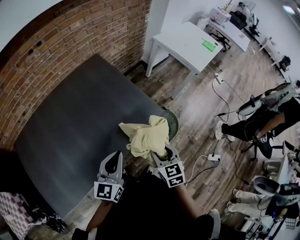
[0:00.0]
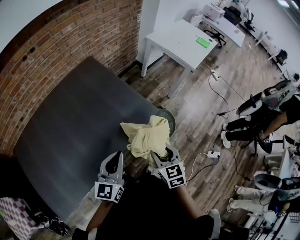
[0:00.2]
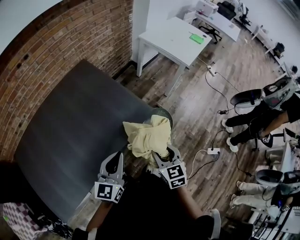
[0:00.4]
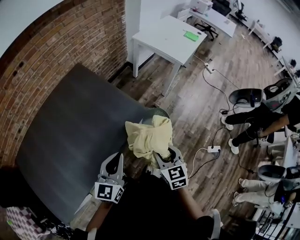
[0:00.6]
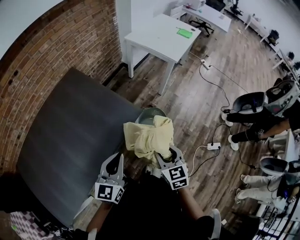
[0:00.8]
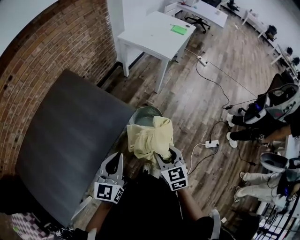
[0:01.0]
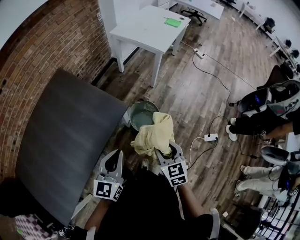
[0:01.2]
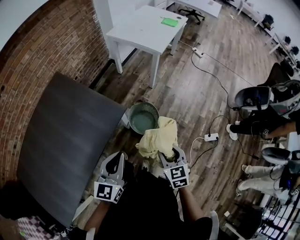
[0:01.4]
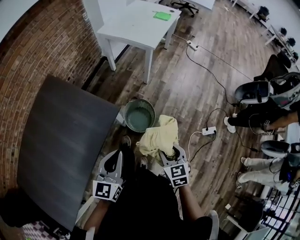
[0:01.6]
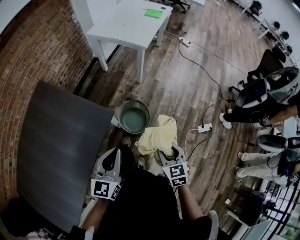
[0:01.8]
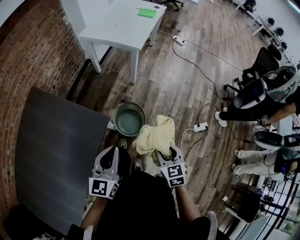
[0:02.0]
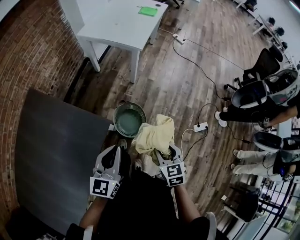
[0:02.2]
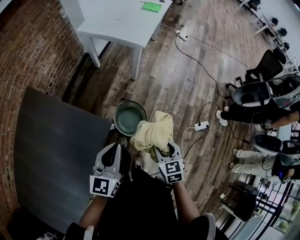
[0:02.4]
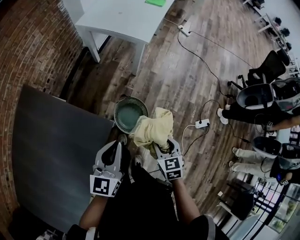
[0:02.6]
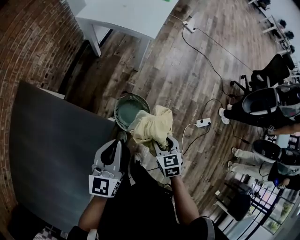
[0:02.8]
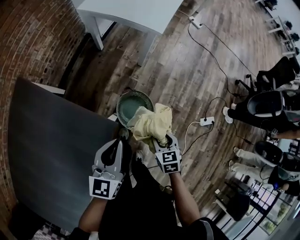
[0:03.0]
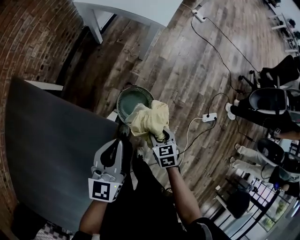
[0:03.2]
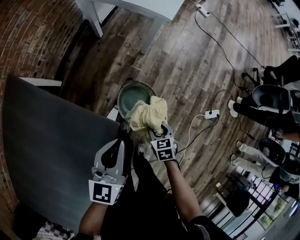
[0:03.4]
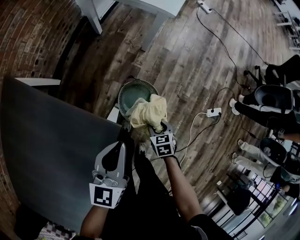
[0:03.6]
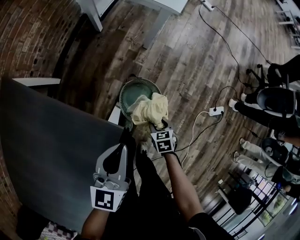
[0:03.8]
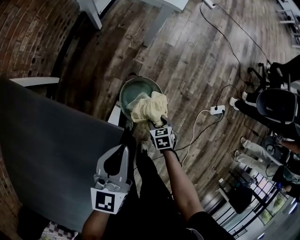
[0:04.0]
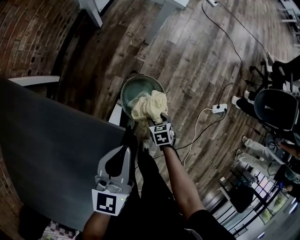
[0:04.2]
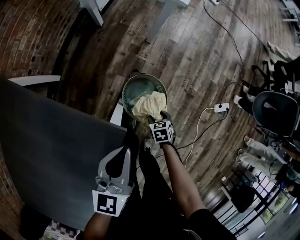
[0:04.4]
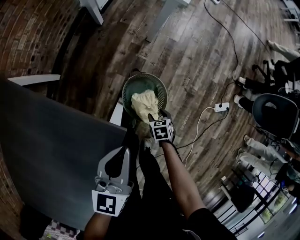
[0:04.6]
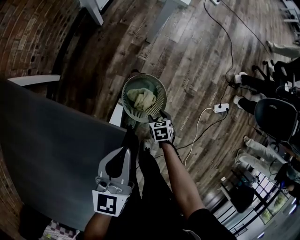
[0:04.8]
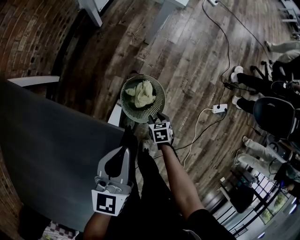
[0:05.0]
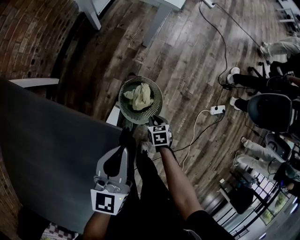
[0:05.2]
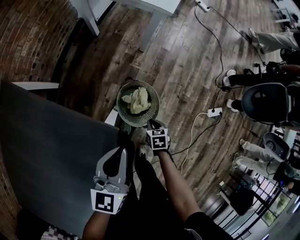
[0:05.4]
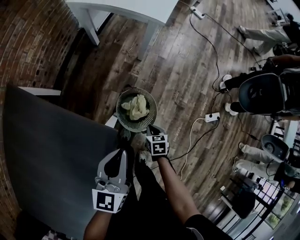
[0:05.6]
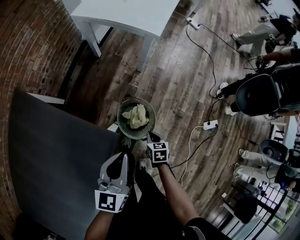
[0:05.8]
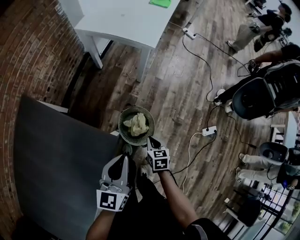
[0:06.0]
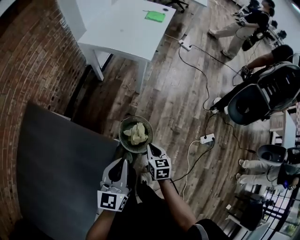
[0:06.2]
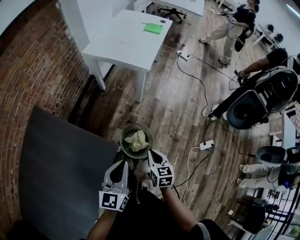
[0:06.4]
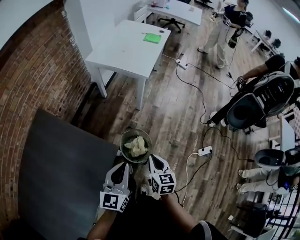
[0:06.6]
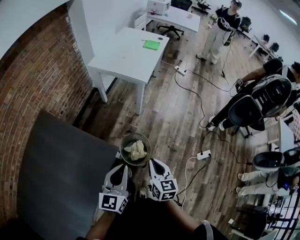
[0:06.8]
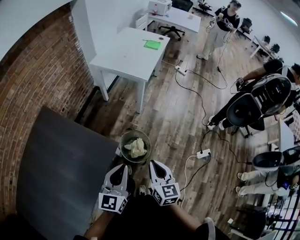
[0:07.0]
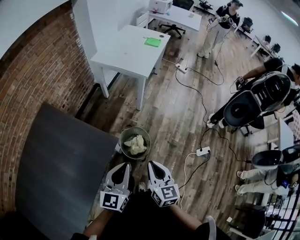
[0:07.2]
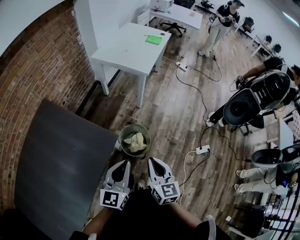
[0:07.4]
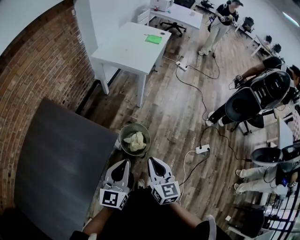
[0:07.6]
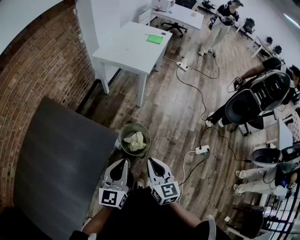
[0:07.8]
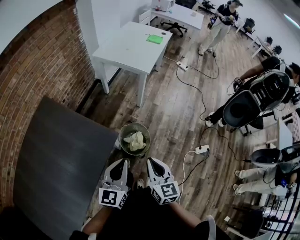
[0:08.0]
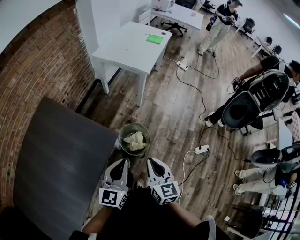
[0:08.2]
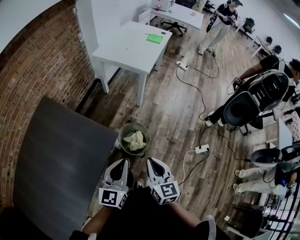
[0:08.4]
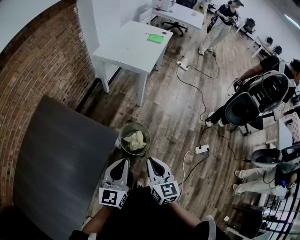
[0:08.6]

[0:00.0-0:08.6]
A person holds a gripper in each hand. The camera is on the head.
0:00.0 to 0:01.4: The two grippers go about 25 cm to the right.
0:01.4 to 0:02.8: The left gripper moves forward, approximately 25 cm. Meanwhile the right gripper travels forward and downward by roughly 20 cm.
0:02.8 to 0:04.4: The left gripper shifts approximately 10 cm downward. Meanwhile the right gripper heads downward, covering approximately 30 cm, and turns by roughly 20 degrees.
0:04.4 to 0:05.8: The left gripper goes roughly 5 cm upward. Meanwhile the right gripper shifts roughly 15 cm upward, and closes.
0:05.8 to 0:07.2: The right gripper moves upward and backward, some 40 cm, and angles its fingers upward, by roughly 40 degrees; the left gripper is displaced backward and upward by about 20 cm.
0:07.2 to 0:08.6: The grippers stay close to where they were, moving slightly.

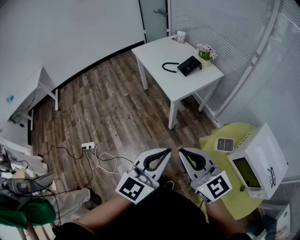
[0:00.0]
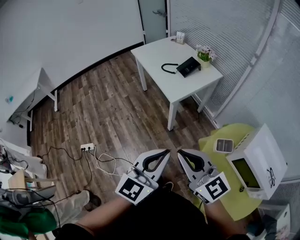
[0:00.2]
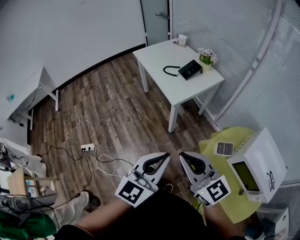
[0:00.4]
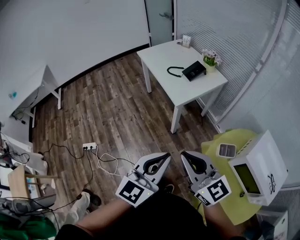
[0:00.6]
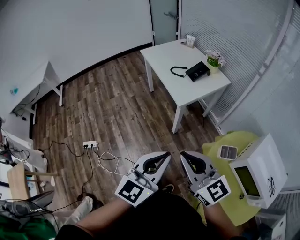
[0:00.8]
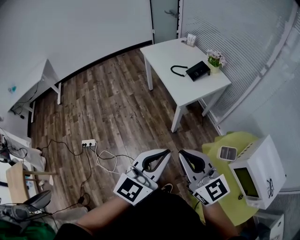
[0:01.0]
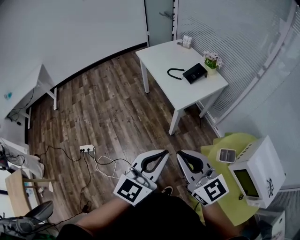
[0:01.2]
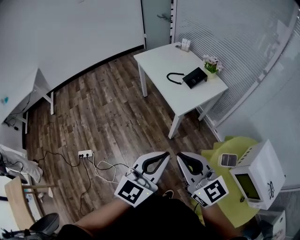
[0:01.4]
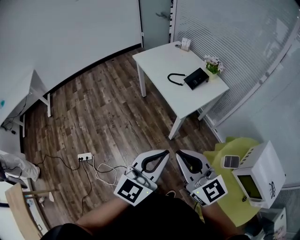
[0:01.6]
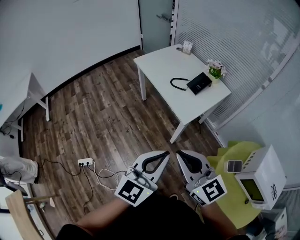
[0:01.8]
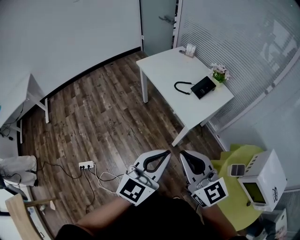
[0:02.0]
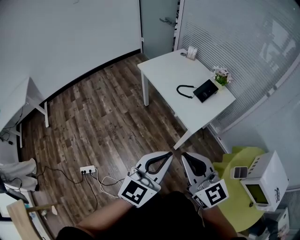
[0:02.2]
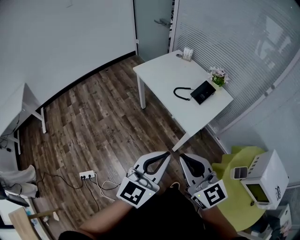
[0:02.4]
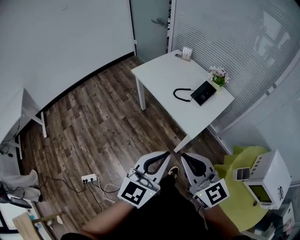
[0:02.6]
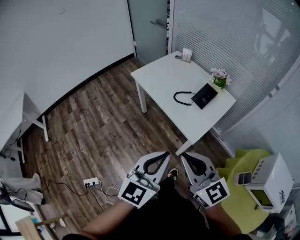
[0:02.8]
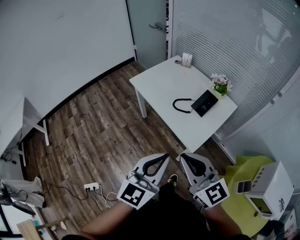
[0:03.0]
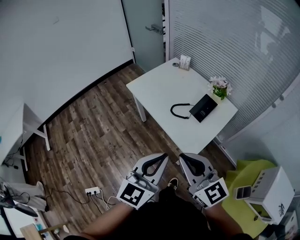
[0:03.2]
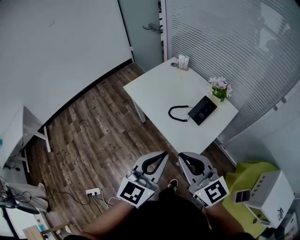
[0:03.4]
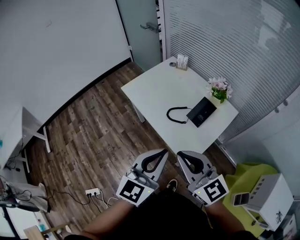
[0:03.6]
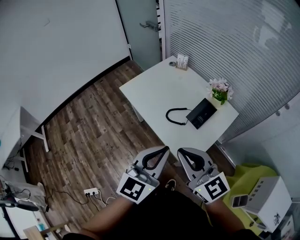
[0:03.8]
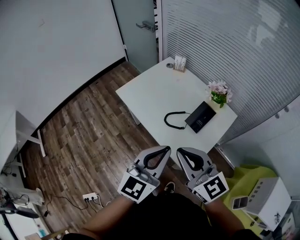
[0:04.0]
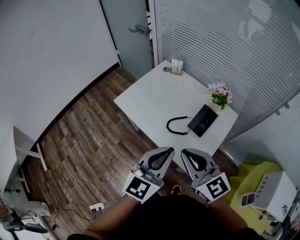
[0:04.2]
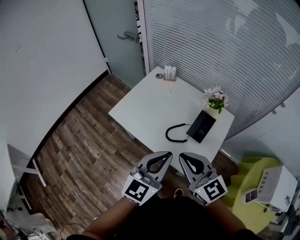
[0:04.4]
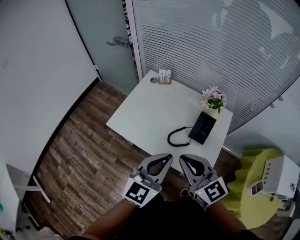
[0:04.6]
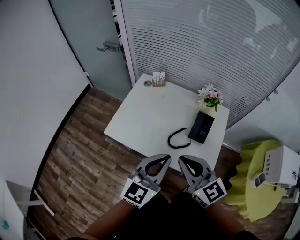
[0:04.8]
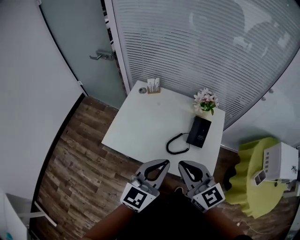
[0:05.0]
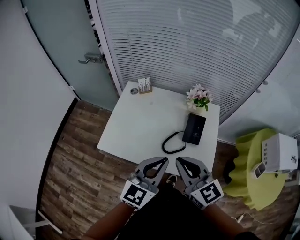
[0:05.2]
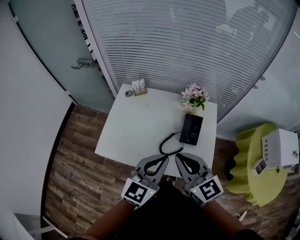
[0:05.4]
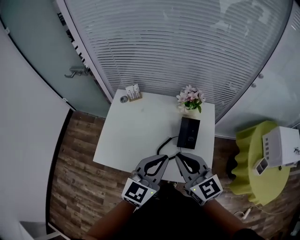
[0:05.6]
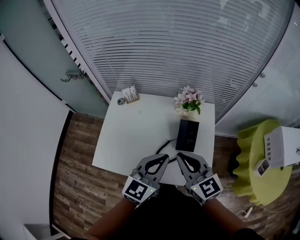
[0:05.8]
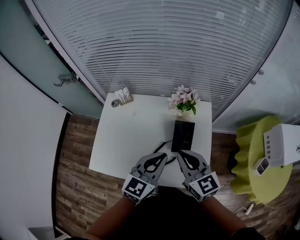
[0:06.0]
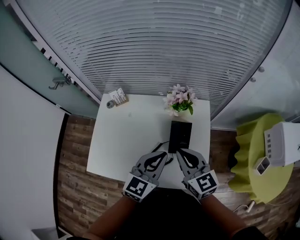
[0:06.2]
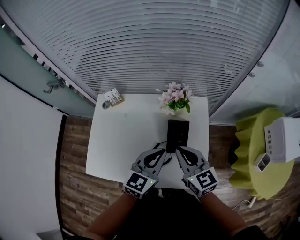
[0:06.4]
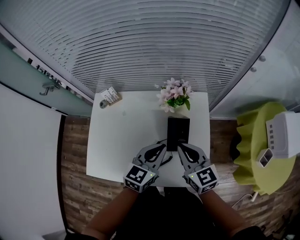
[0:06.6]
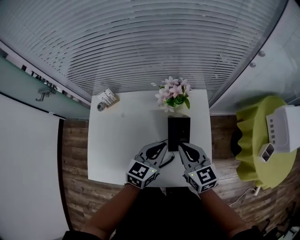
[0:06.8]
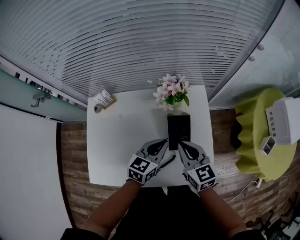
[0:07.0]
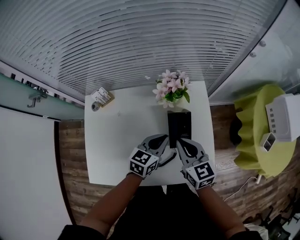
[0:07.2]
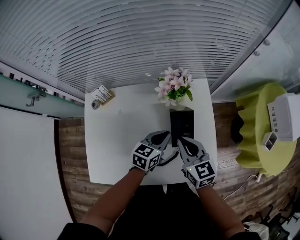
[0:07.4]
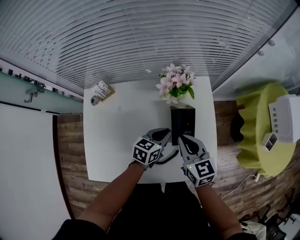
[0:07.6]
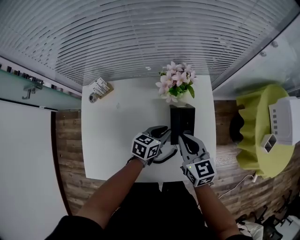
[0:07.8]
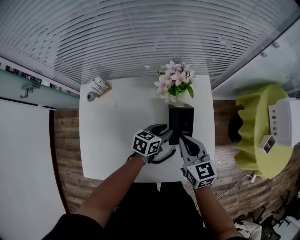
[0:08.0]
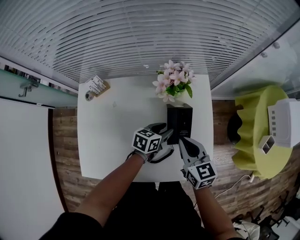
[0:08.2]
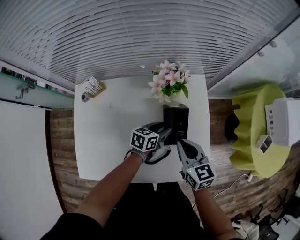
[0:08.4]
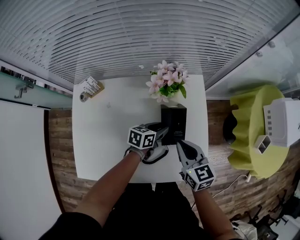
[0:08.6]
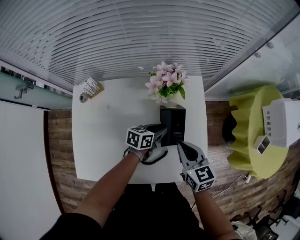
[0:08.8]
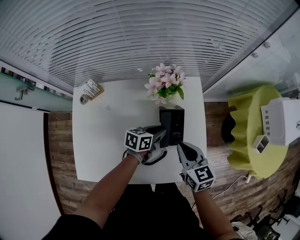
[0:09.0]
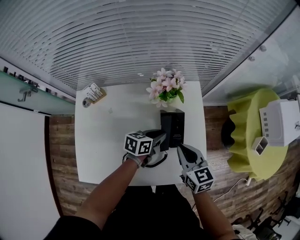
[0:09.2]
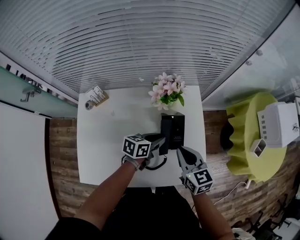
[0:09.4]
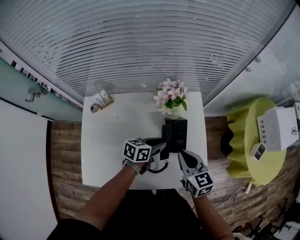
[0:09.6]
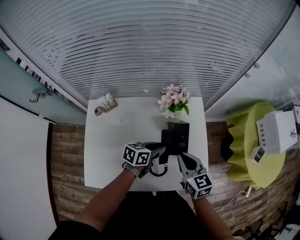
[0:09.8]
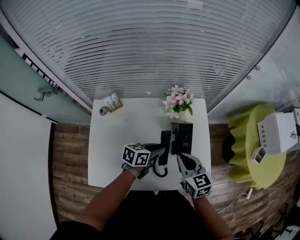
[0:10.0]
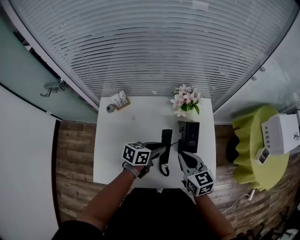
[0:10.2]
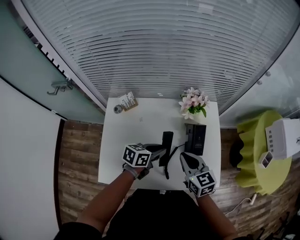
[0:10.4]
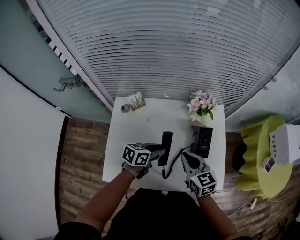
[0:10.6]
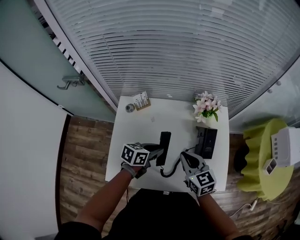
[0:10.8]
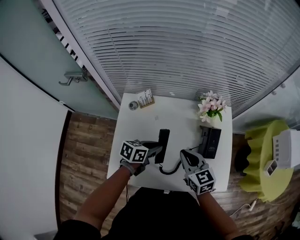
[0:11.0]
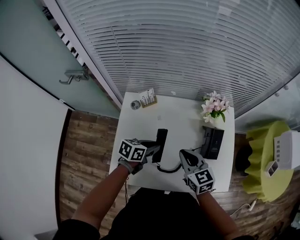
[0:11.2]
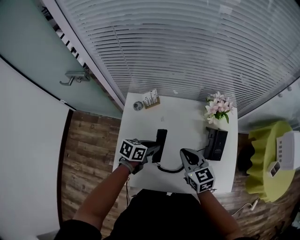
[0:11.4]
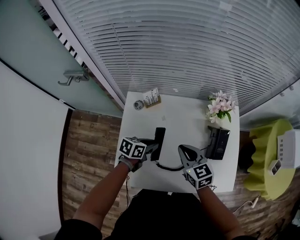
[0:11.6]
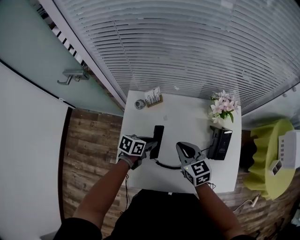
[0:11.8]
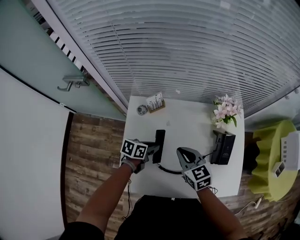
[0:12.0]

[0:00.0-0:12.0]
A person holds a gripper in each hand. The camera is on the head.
0:00.0 to 0:01.6: Both grippers travel together forward and to the left, approximately 15 cm.
0:01.6 to 0:03.0: The two grippers go approximately 25 cm forward.
0:03.0 to 0:04.4: Both grippers travel together forward, approximately 25 cm.
0:04.4 to 0:06.0: The left gripper shifts by some 20 cm, and changes its angle by approximately 30 degrees. Meanwhile the right gripper moves approximately 20 cm, and rotates some 40 degrees.
0:06.0 to 0:07.6: The right gripper goes some 15 cm downward and forward, and turns by approximately 20 degrees; the left gripper travels downward and forward by some 25 cm, and turns by some 30 degrees.
0:07.6 to 0:09.0: The left gripper moves roughly 5 cm. Meanwhile the right gripper moves to the right, some 5 cm.
0:09.0 to 0:10.4: The right gripper moves to the left, backward and upward, roughly 15 cm, while the left gripper travels to the left, upward and backward by about 20 cm.
0:10.4 to 0:12.0: The left gripper travels to the left and downward by some 20 cm. Meanwhile the right gripper shifts some 20 cm to the left.

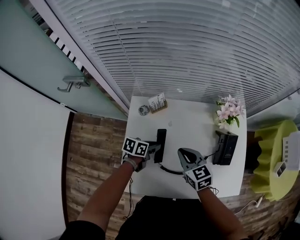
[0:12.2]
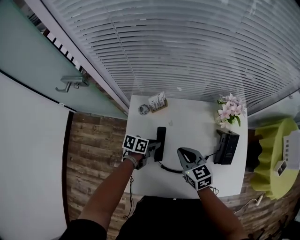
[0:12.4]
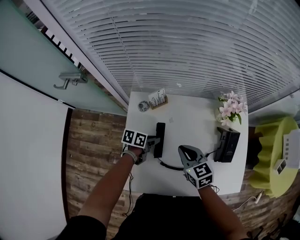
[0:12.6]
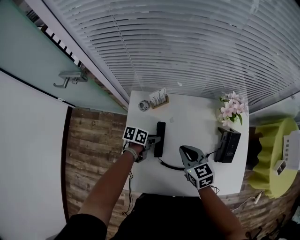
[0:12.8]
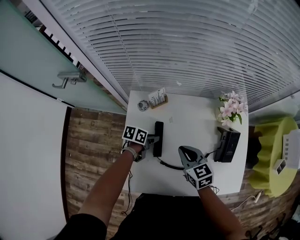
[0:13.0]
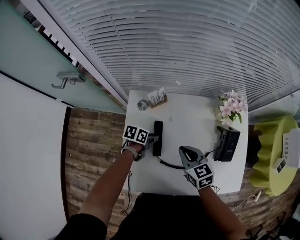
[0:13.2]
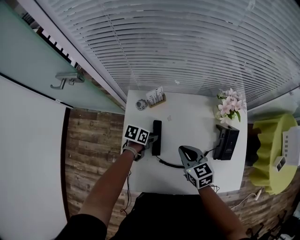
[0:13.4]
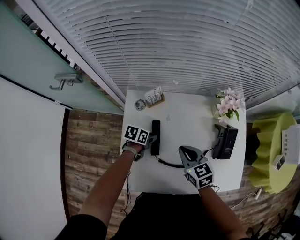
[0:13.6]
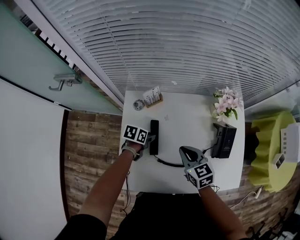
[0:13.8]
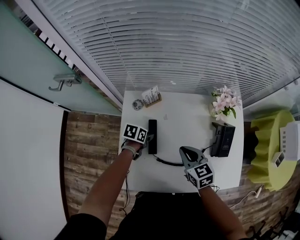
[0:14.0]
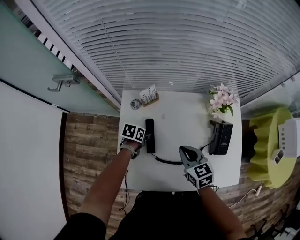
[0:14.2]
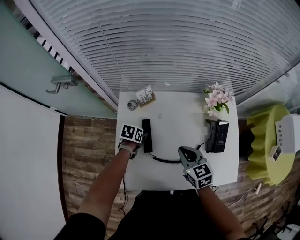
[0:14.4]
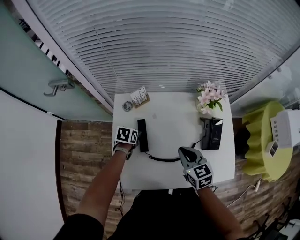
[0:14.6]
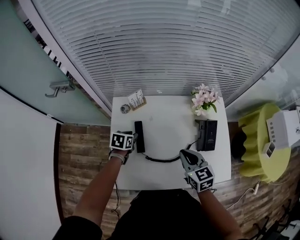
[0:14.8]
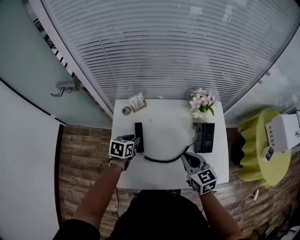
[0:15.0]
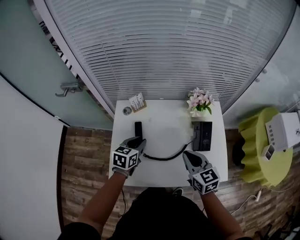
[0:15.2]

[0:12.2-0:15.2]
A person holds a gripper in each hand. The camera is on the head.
0:12.2 to 0:13.8: The left gripper ends up about 5 cm from where it was.
0:13.8 to 0:15.2: The right gripper moves to the right, upward and backward, about 20 cm. Meanwhile the left gripper shifts roughly 20 cm upward, and changes its angle by roughly 40 degrees.
